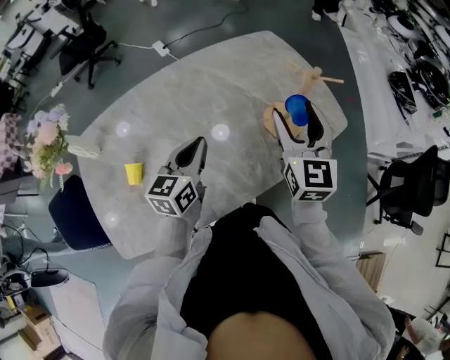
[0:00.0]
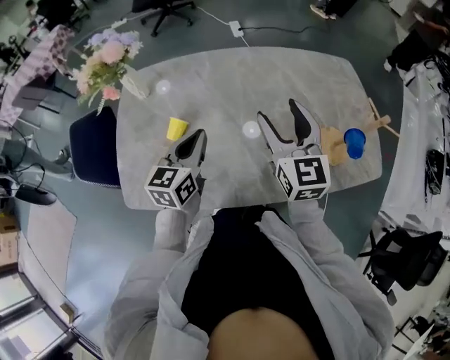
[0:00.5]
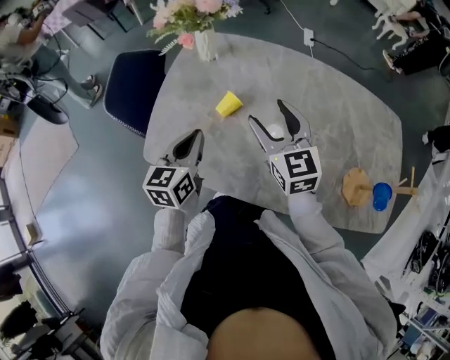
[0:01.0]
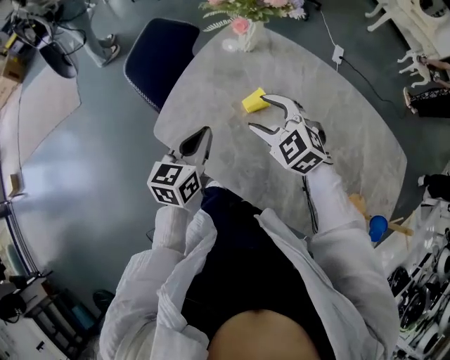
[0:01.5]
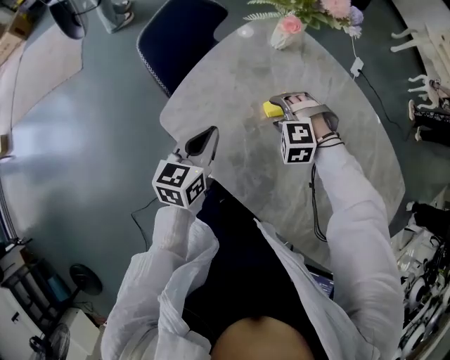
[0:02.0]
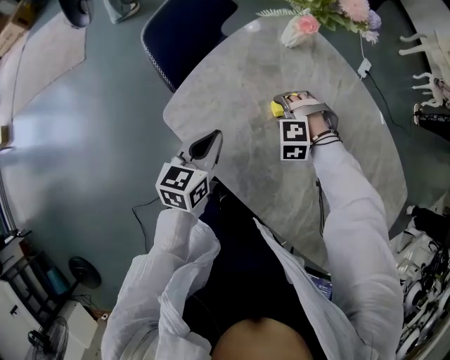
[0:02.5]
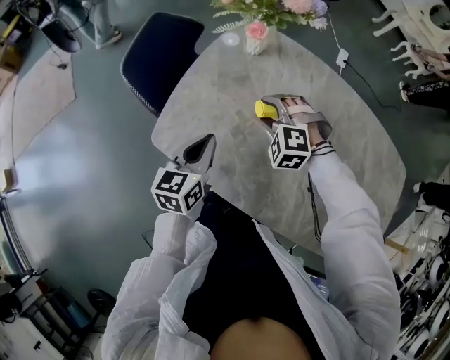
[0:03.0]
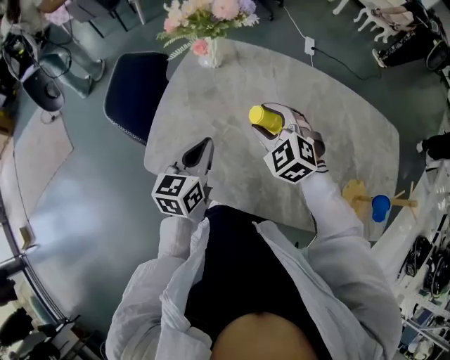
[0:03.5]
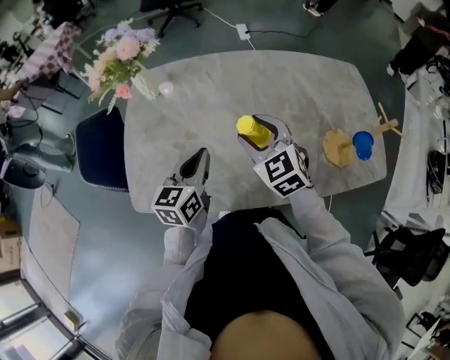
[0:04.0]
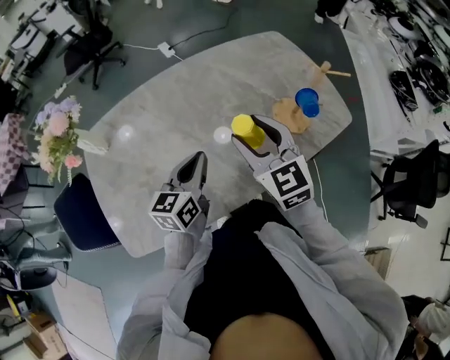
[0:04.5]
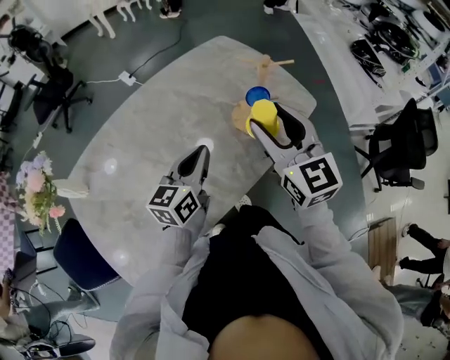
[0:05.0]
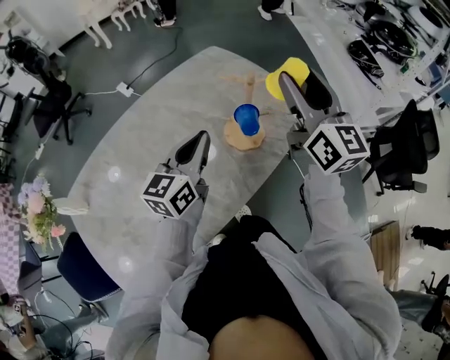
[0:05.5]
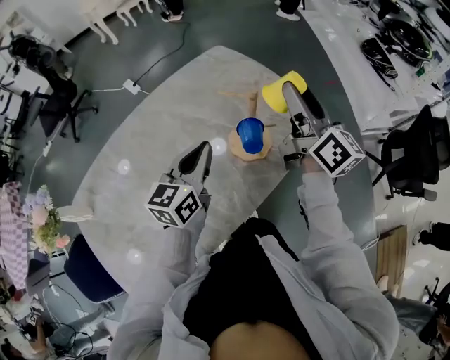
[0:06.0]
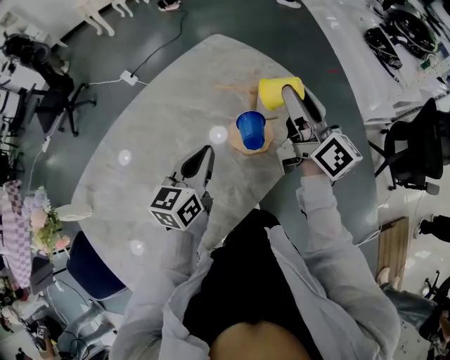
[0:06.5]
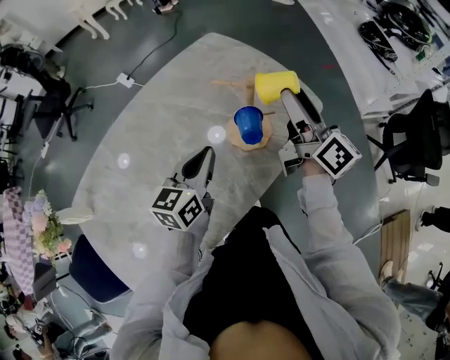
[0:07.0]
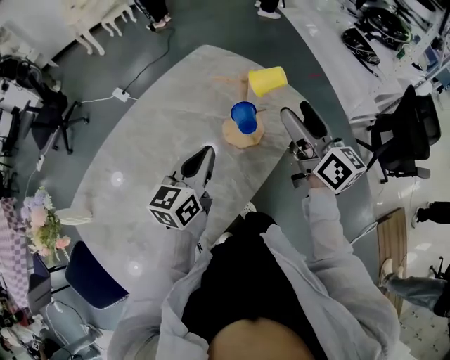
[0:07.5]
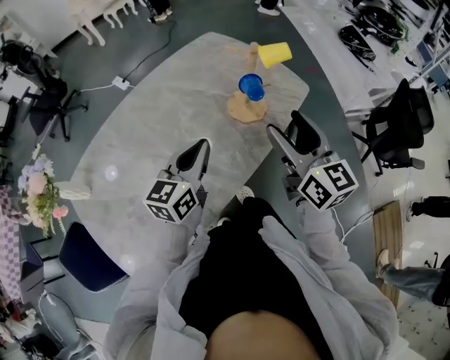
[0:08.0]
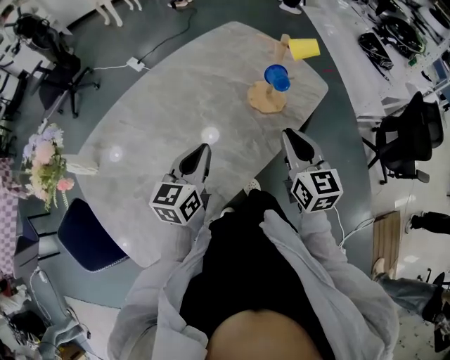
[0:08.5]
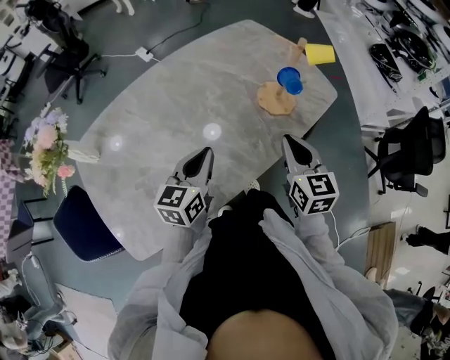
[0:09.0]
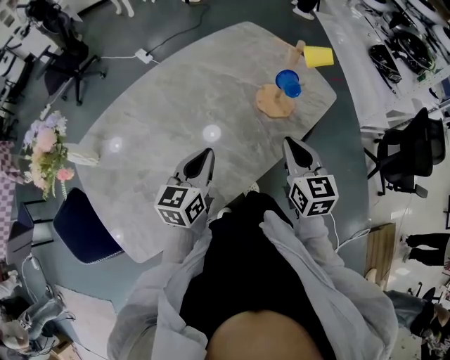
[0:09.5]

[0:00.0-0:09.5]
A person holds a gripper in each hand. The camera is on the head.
0:00.0 to 0:02.0: The two grippers travel together, approximately 50 cm. The right gripper angles its fingers downward, by about 70 degrees, while the left gripper rotates about 70 degrees.
0:02.0 to 0:04.0: The right gripper changes place by approximately 25 cm, and rolls clockwise, seen from behind, by roughly 80 degrees. The left gripper ends up roughly 20 cm from where it was, and changes its angle by about 40 degrees.
0:04.0 to 0:05.5: The right gripper changes place by about 50 cm, and tips its fingers upward by roughly 40 degrees. The left gripper shifts by some 40 cm, and turns by about 50 degrees.
0:05.5 to 0:07.5: The right gripper is displaced downward by some 10 cm, and swivels roughly 30 degrees.
0:07.5 to 0:09.5: The left gripper heads backward and to the left, covering roughly 15 cm. Meanwhile the right gripper goes roughly 20 cm backward, to the left and downward, swivels approximately 40 degrees, and closes.

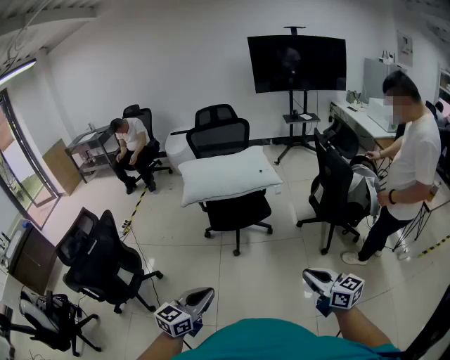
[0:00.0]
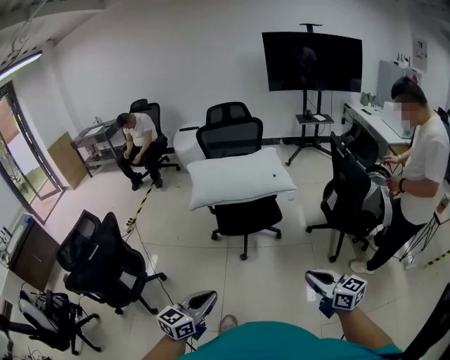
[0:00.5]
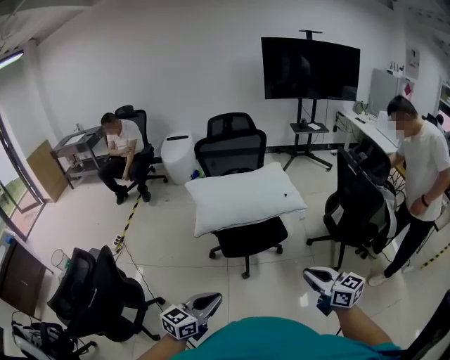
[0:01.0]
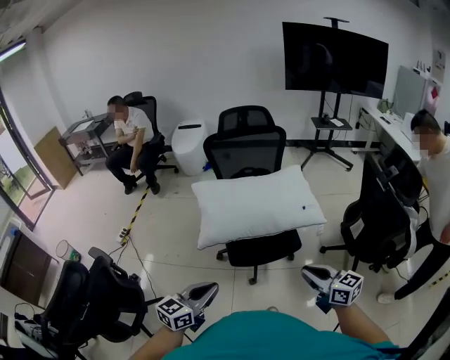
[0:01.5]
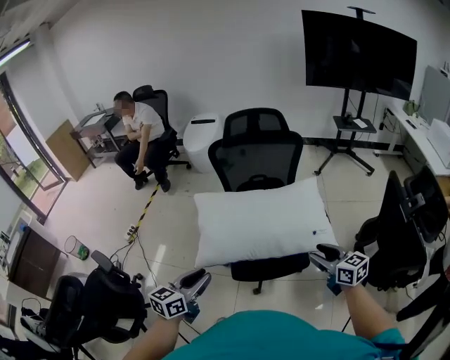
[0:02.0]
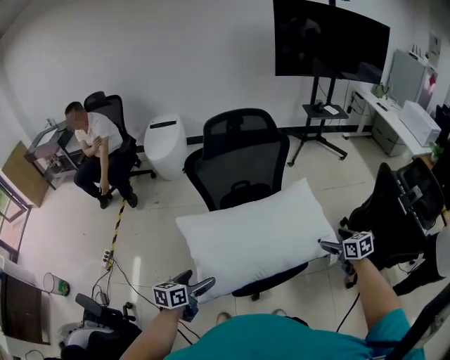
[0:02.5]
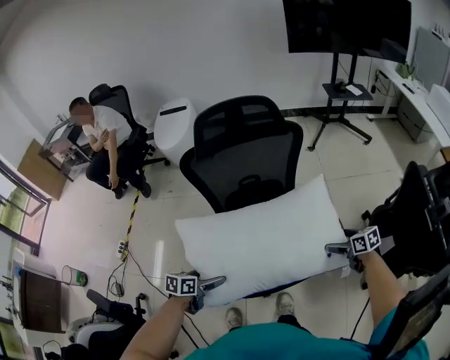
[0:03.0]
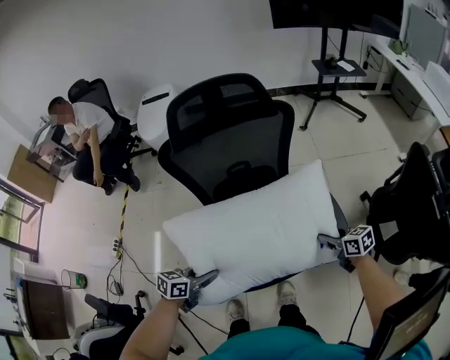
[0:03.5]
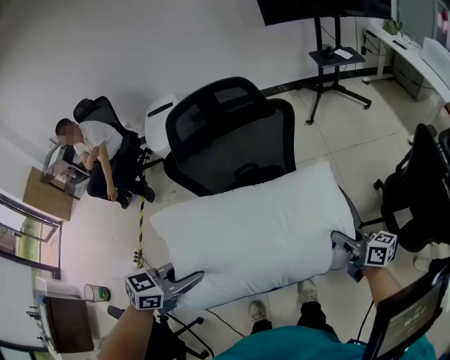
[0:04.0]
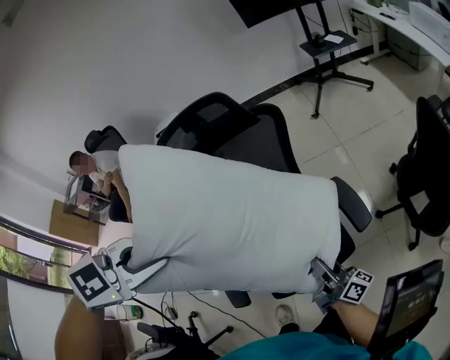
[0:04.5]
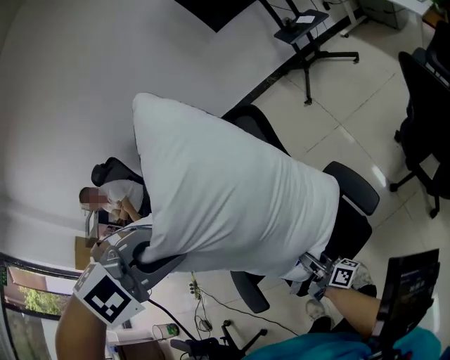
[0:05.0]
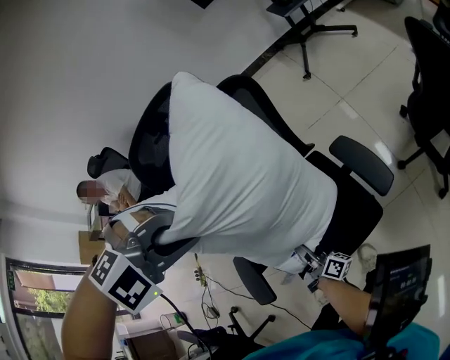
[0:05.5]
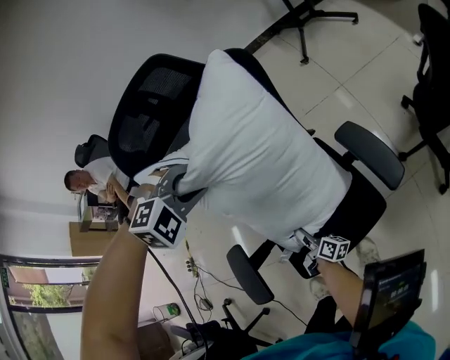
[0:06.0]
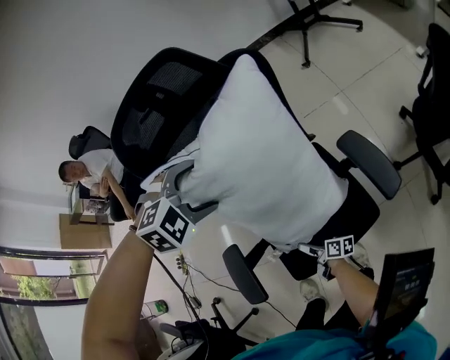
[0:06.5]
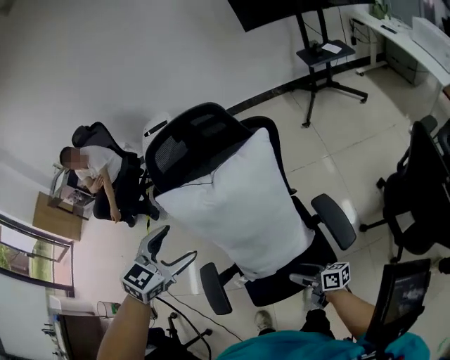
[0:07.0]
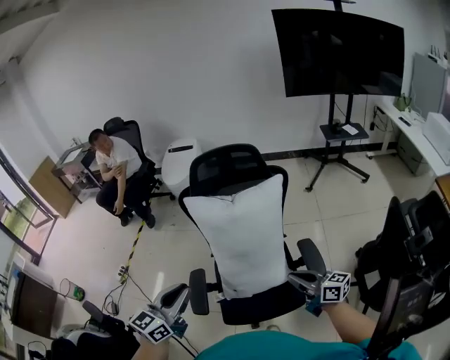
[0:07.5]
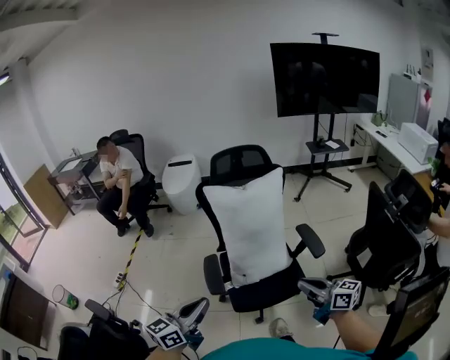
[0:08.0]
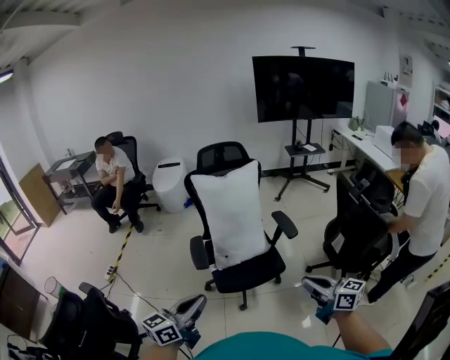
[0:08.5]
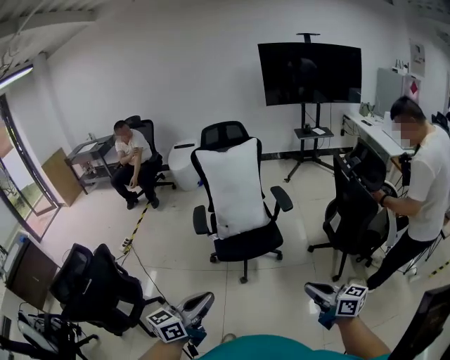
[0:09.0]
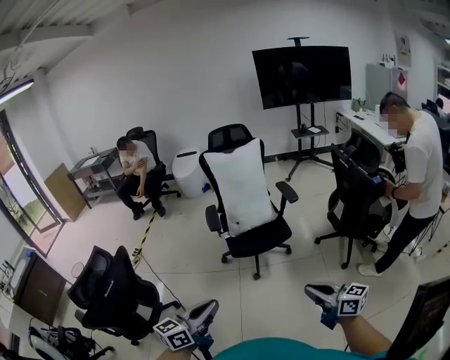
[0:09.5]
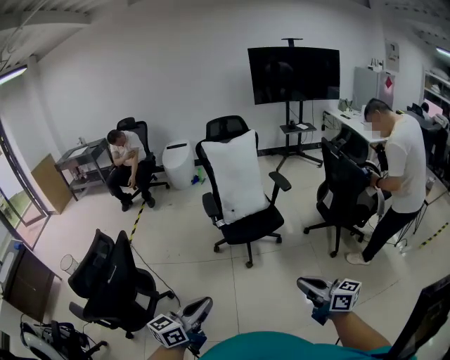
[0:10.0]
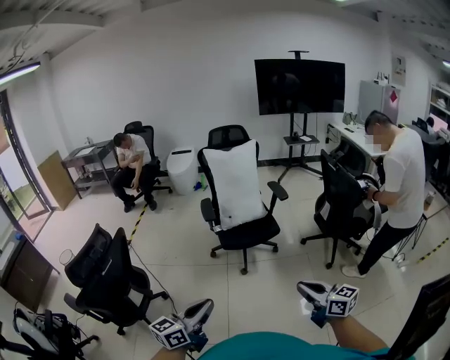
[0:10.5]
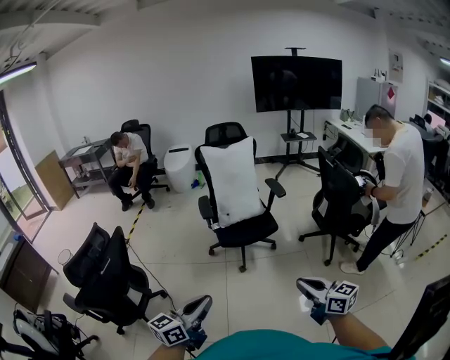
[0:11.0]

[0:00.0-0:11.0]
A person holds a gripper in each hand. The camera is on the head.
0:00.0 to 0:02.0: Both grippers are carried forward, some 60 cm.
0:02.0 to 0:03.5: Both grippers travel together forward and downward, some 30 cm. The left gripper changes its angle by roughly 40 degrees, and opens and closes again, while the right gripper turns by roughly 20 degrees, and opens, then closes again.
0:03.5 to 0:05.5: The left gripper travels upward, forward and to the right by roughly 35 cm, and rotates around the line of its fingers by some 100 degrees, clockwise from behind. Meanwhile the right gripper is displaced to the left and downward by roughly 25 cm, and angles its fingers upward, by about 50 degrees.
0:05.5 to 0:07.5: The left gripper goes downward and returns, about 15 cm each way, tips its fingers upward by approximately 60 degrees, and opens, then closes again, while the right gripper goes some 30 cm upward, rotates about 60 degrees, and opens, then closes once more.
0:07.5 to 0:09.0: The pair of grippers is taken backward, roughly 60 cm. The left gripper turns by some 20 degrees.
0:09.0 to 0:11.0: Both grippers travel together backward and to the left, about 20 cm.

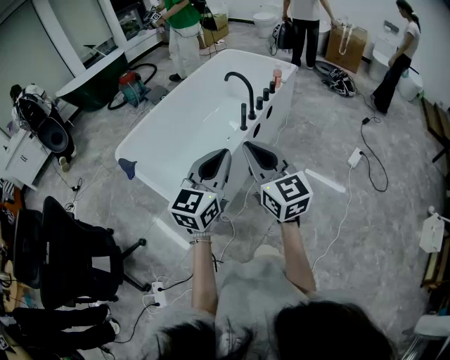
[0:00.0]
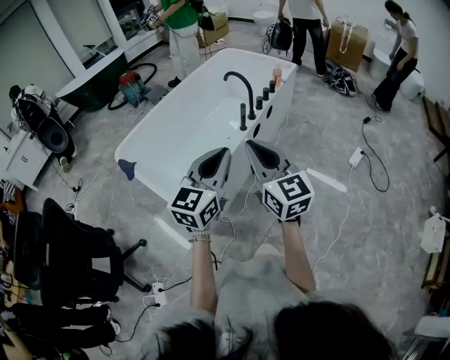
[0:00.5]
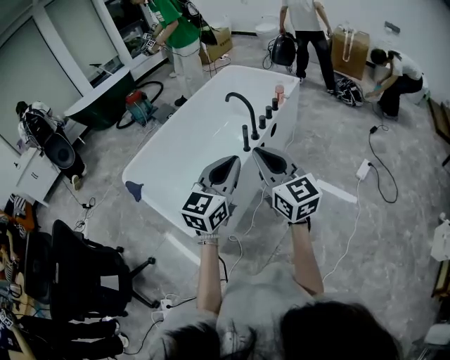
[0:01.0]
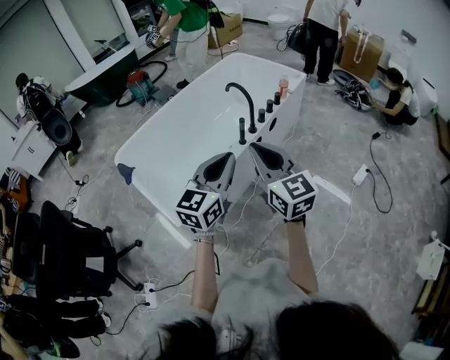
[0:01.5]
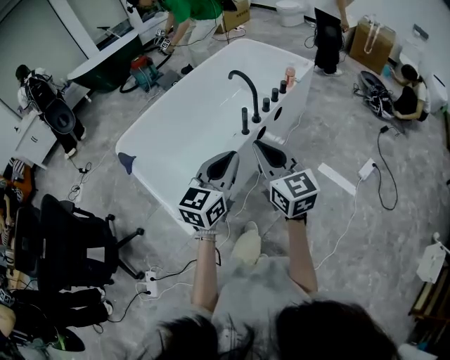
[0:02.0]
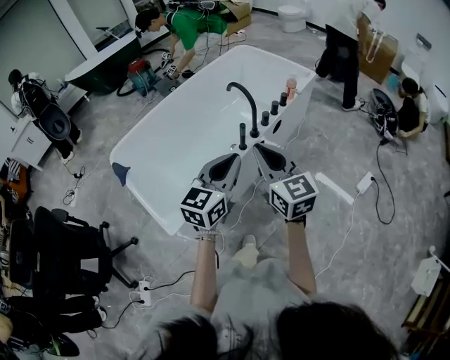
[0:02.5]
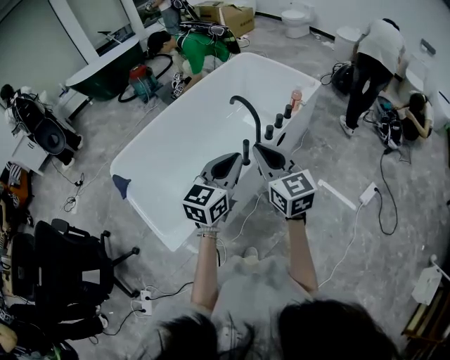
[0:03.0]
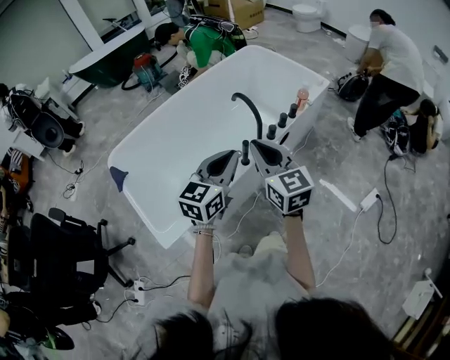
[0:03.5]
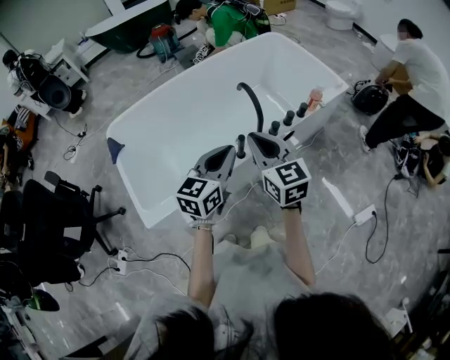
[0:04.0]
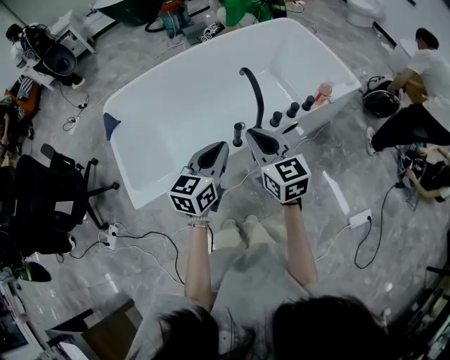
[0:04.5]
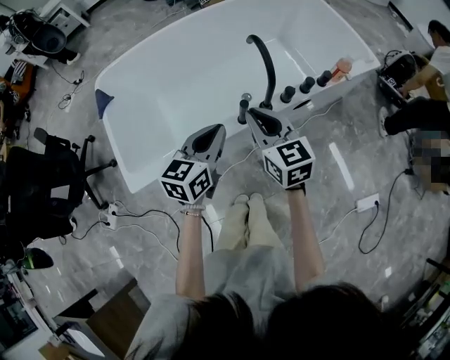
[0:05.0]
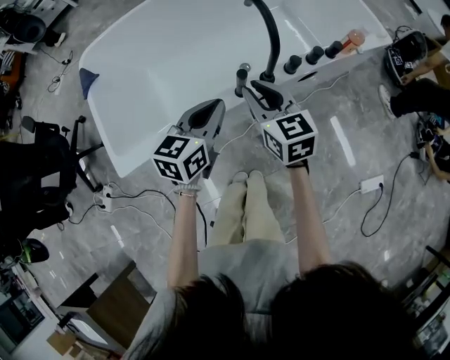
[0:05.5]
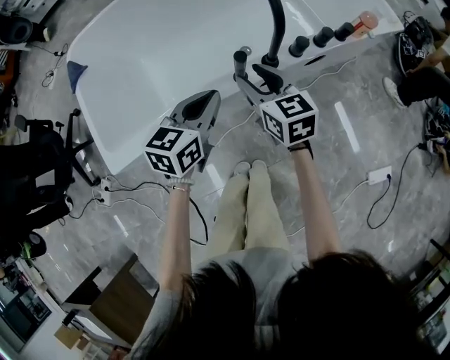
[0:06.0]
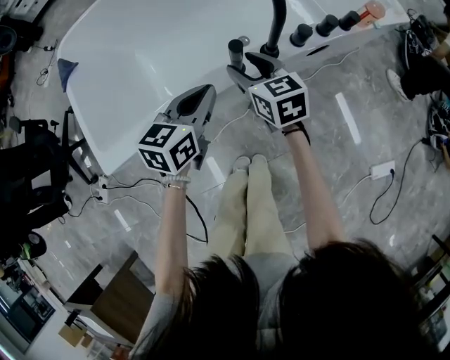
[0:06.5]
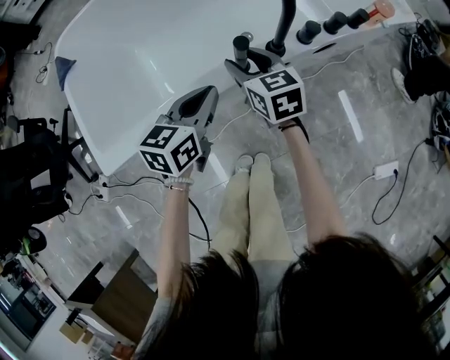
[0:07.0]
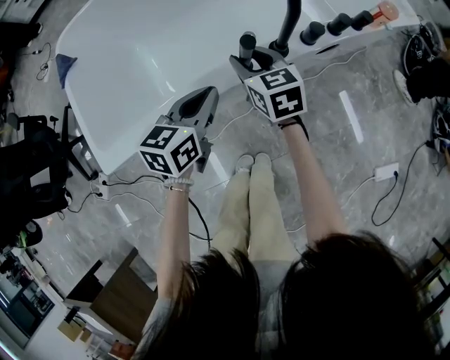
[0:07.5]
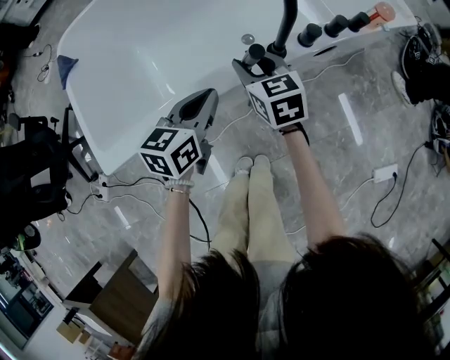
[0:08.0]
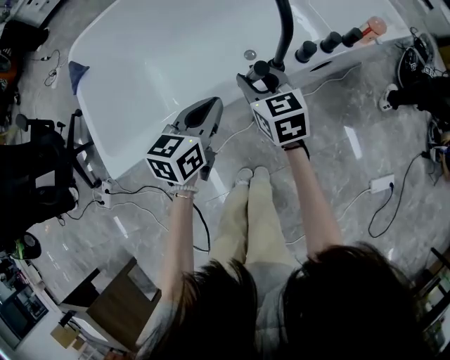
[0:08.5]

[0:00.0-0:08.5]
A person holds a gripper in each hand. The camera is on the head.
0:00.0 to 0:02.0: Both grippers travel together forward and to the right, approximately 15 cm.
0:02.0 to 0:04.0: The grippers both shift forward by about 25 cm.
0:04.0 to 0:06.5: Both grippers travel together downward, approximately 30 cm. The left gripper rotates about 20 degrees. Meanwhile the right gripper rotates about 20 degrees, and opens up.
0:06.5 to 0:08.5: The grippers move only a little.
